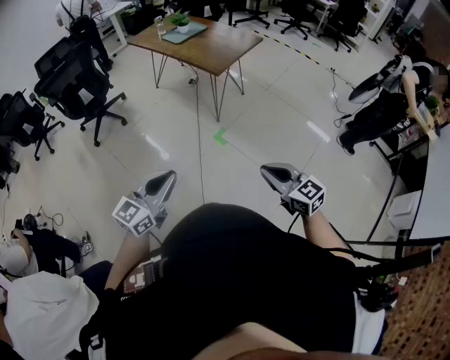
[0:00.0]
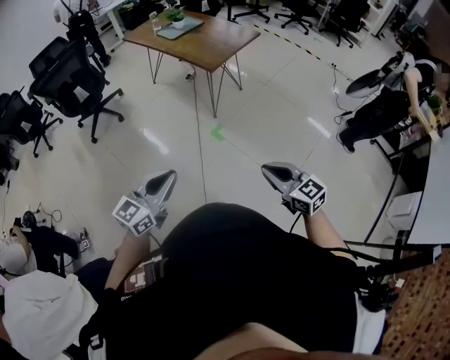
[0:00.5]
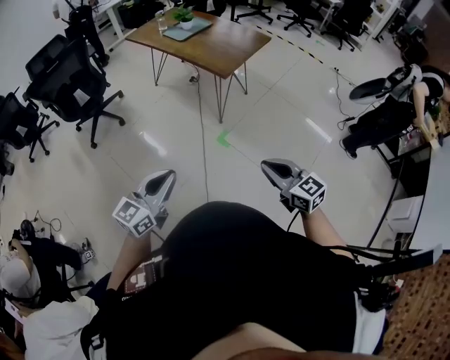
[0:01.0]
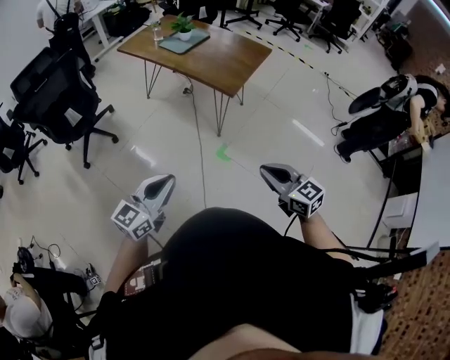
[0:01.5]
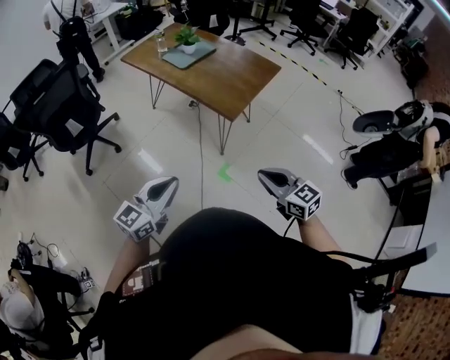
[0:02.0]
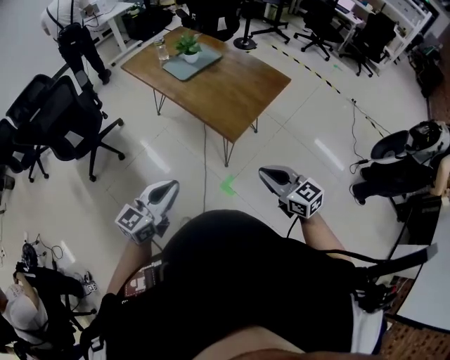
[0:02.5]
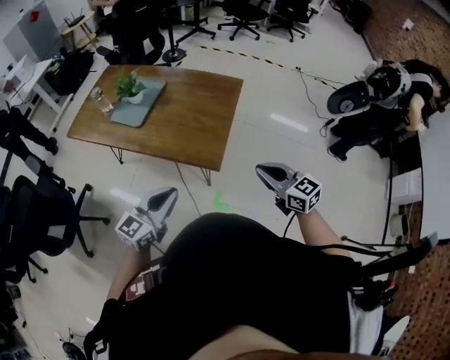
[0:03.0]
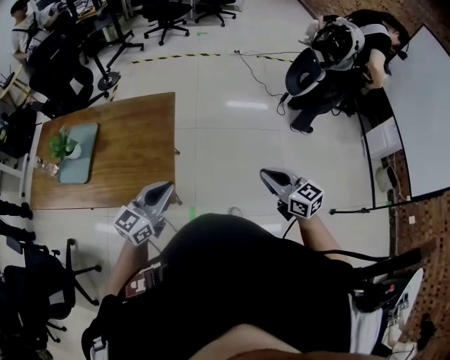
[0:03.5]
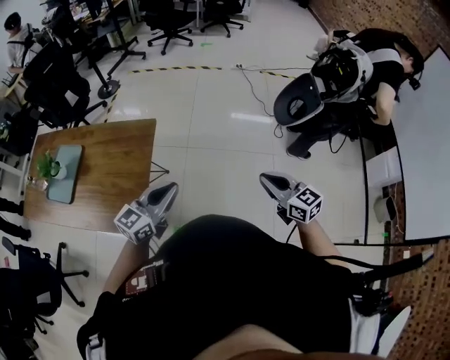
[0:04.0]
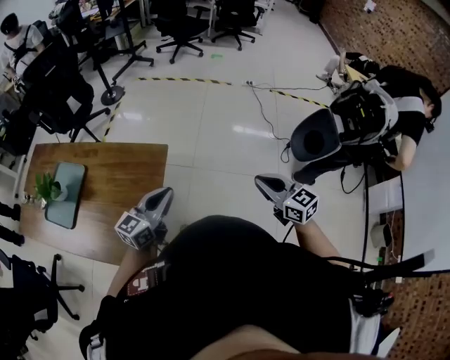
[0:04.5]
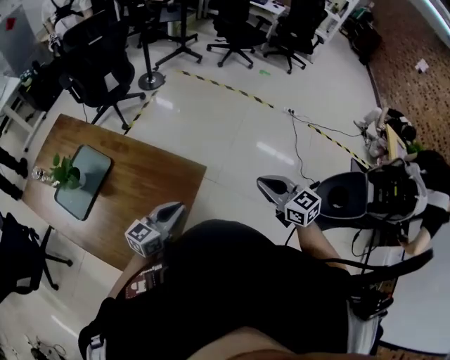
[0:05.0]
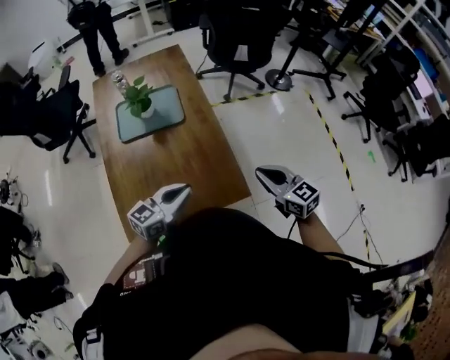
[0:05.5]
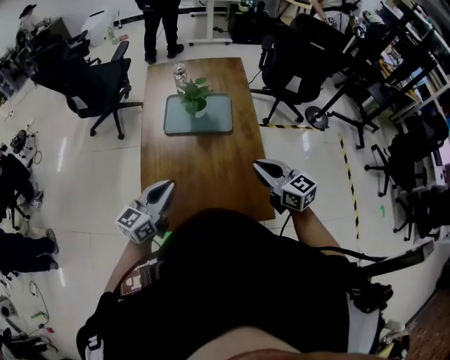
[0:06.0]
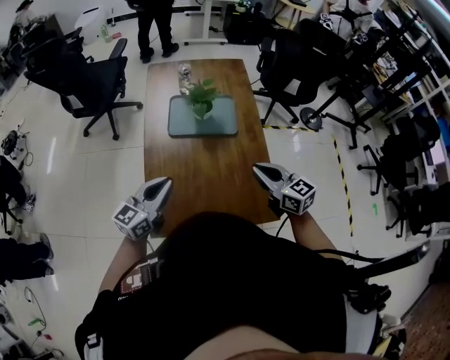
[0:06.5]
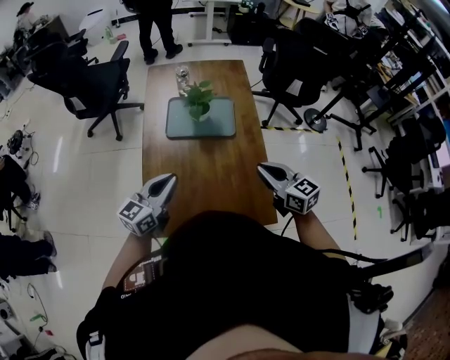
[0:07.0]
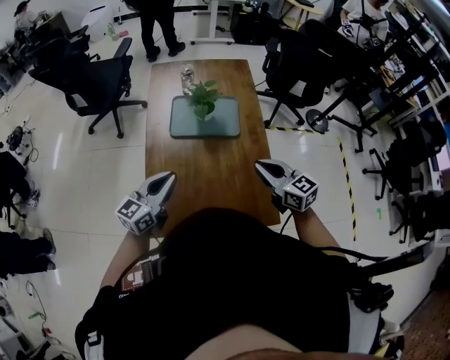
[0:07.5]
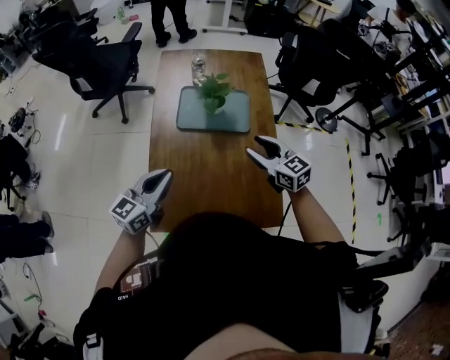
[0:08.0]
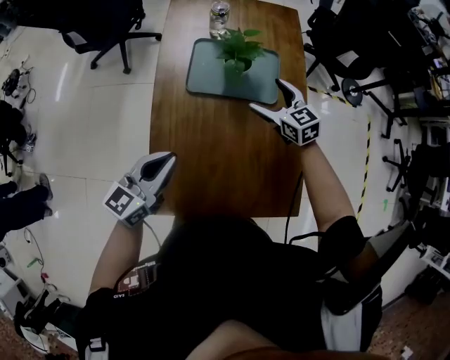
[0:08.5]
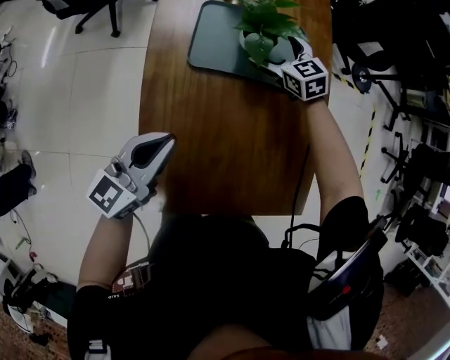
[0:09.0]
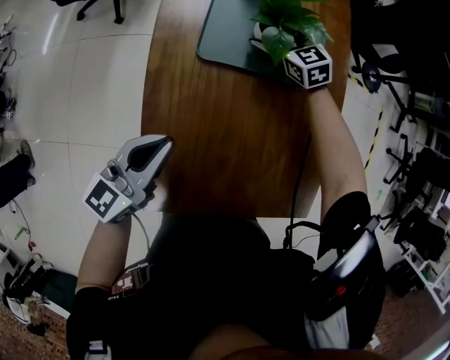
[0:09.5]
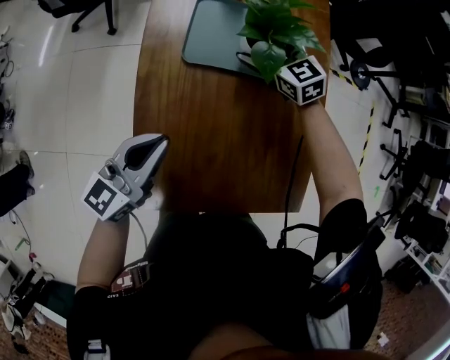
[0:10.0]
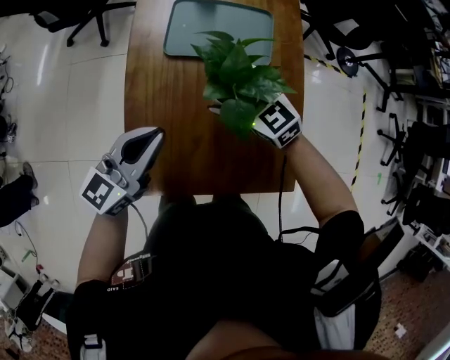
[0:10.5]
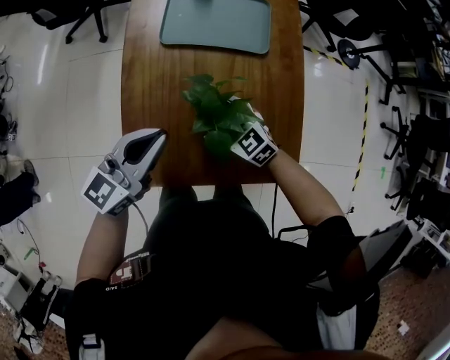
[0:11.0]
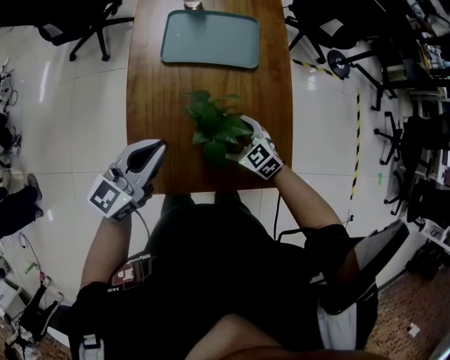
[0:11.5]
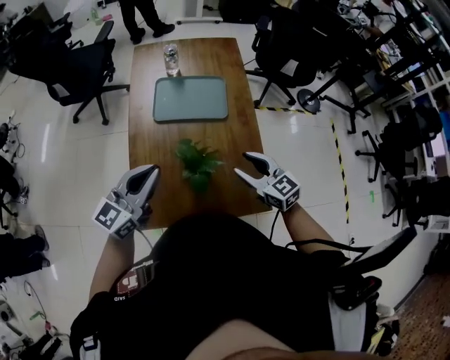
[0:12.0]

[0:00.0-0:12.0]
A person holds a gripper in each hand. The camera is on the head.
0:00.0 to 0:02.0: Both grippers travel together forward, approximately 35 cm.
0:02.0 to 0:04.0: The pair of grippers is taken about 60 cm. The left gripper rotates roughly 40 degrees. Meanwhile the right gripper rotates approximately 40 degrees.
0:04.0 to 0:06.0: The right gripper ends up approximately 70 cm from where it was, and rotates approximately 80 degrees. The left gripper ends up about 35 cm from where it was, and changes its angle by about 90 degrees.
0:06.0 to 0:08.0: The two grippers go roughly 10 cm forward and to the left.
0:08.0 to 0:10.0: The right gripper heads forward, downward and to the left, covering roughly 30 cm, and opens. The left gripper shifts roughly 15 cm downward and forward.
0:10.0 to 0:12.0: The left gripper goes some 20 cm upward and backward. The right gripper shifts some 35 cm backward and upward, and closes its fingers.

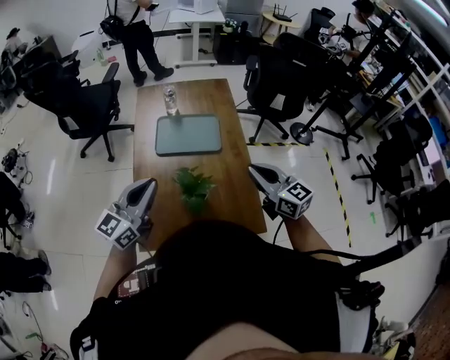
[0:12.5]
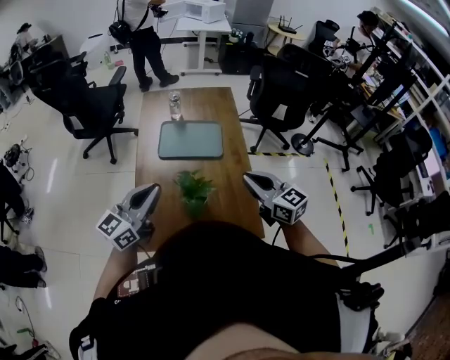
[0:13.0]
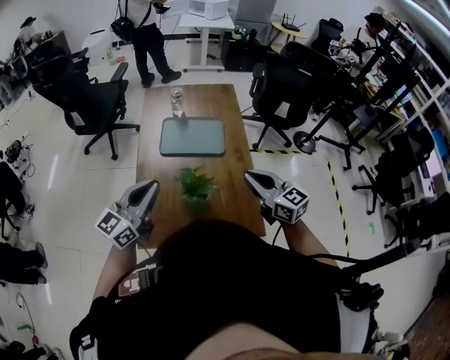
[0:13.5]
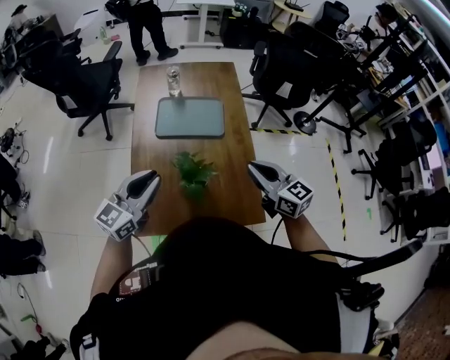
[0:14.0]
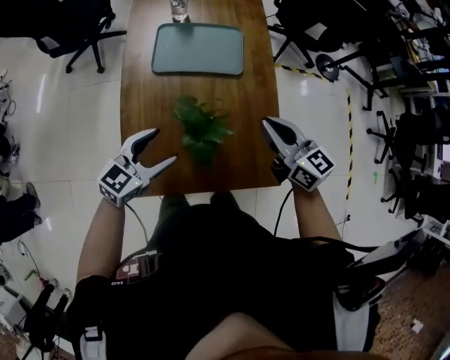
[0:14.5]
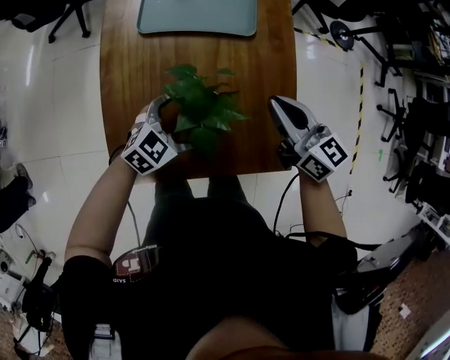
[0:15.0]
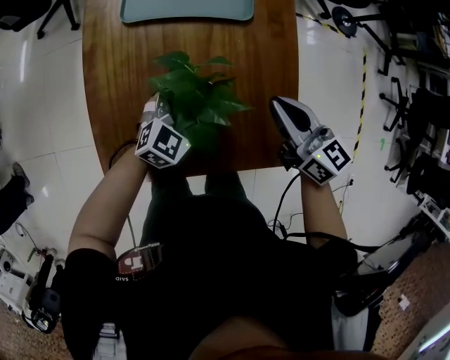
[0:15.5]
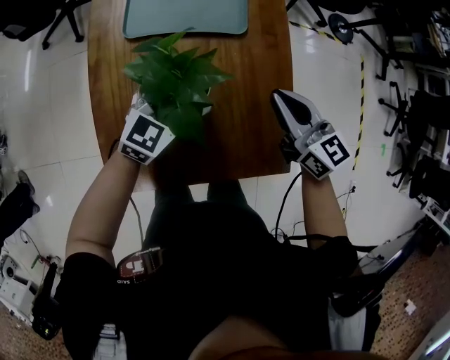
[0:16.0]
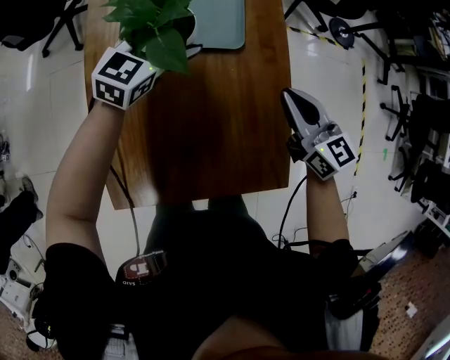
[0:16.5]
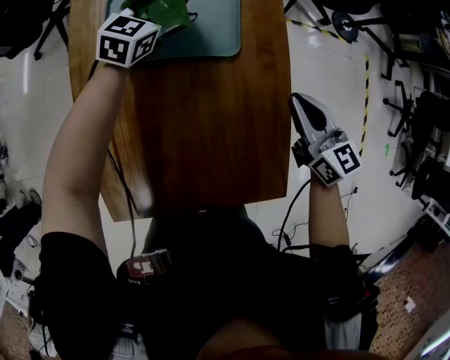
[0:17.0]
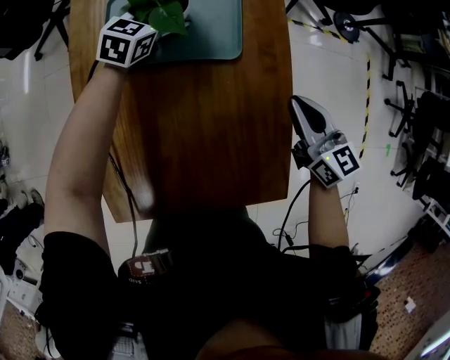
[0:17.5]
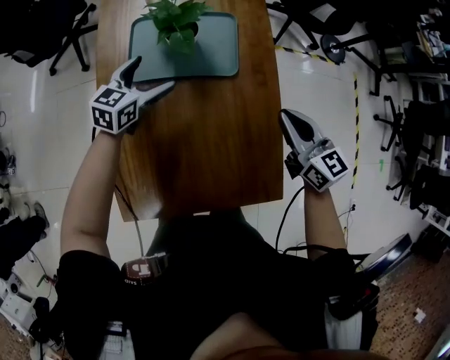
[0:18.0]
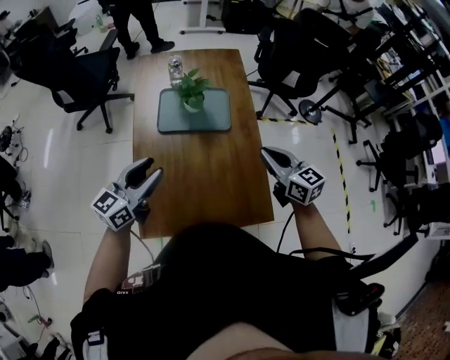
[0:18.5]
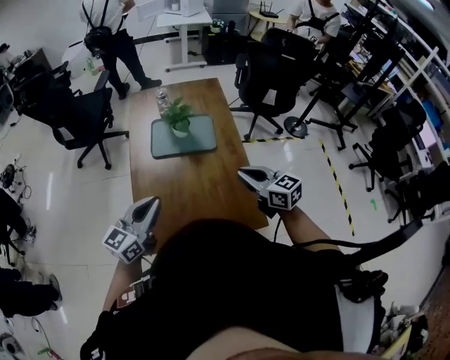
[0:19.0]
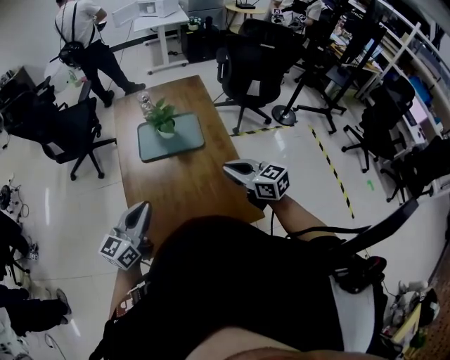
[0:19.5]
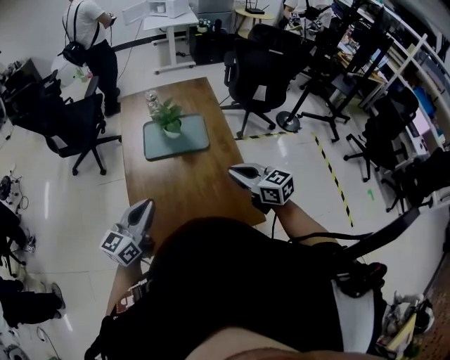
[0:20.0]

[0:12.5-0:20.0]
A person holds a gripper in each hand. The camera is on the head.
0:12.5 to 0:14.5: The left gripper heads downward, covering about 20 cm, changes its angle by approximately 30 degrees, and opens up. Meanwhile the right gripper is displaced downward by approximately 10 cm.
0:14.5 to 0:16.5: The right gripper moves downward and forward, about 15 cm. Meanwhile the left gripper is displaced forward by about 30 cm.
0:16.5 to 0:18.0: The left gripper shifts about 5 cm to the left, and travels forward and back again, approximately 10 cm each way.
0:18.0 to 0:20.0: The right gripper heads backward, upward and to the left, covering about 20 cm. The left gripper shifts approximately 40 cm backward and upward, changes its angle by roughly 30 degrees, and closes.

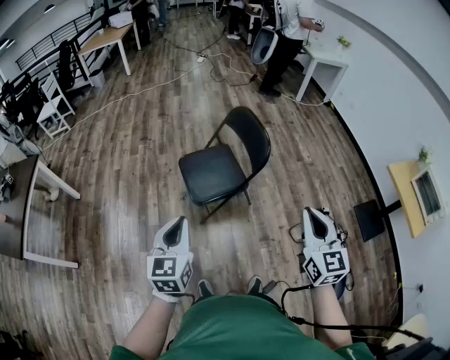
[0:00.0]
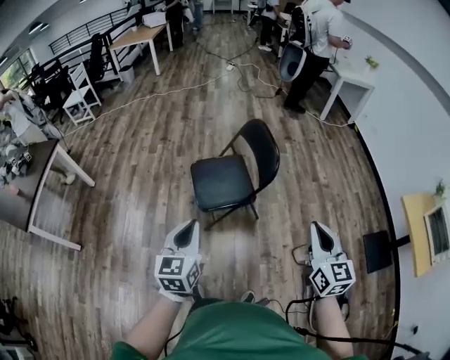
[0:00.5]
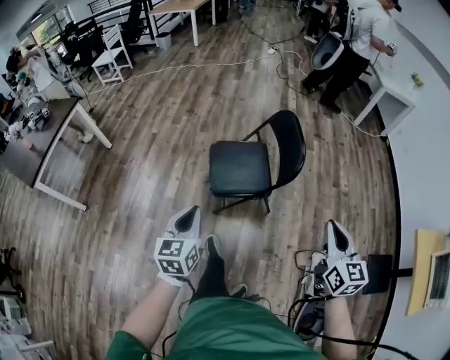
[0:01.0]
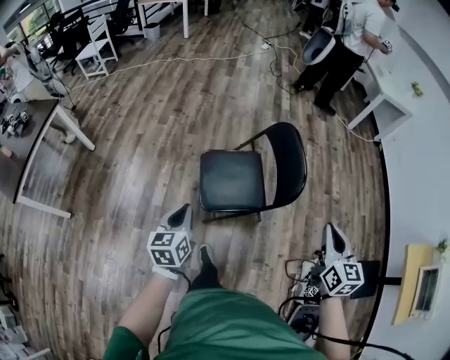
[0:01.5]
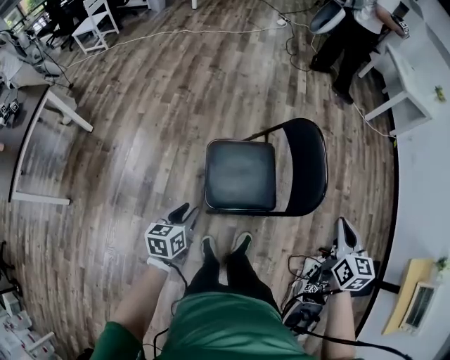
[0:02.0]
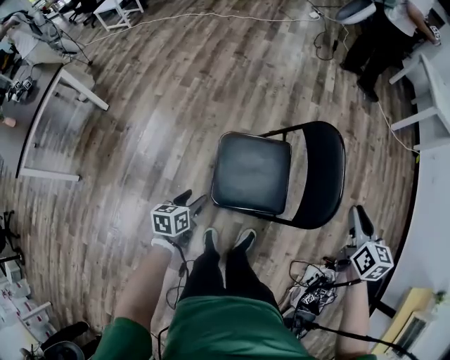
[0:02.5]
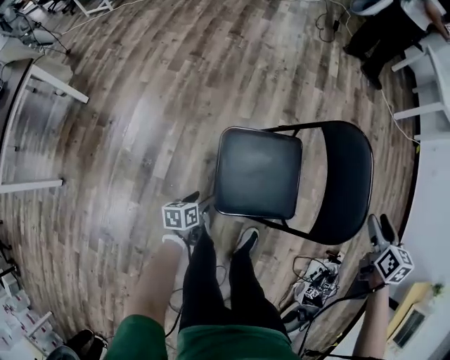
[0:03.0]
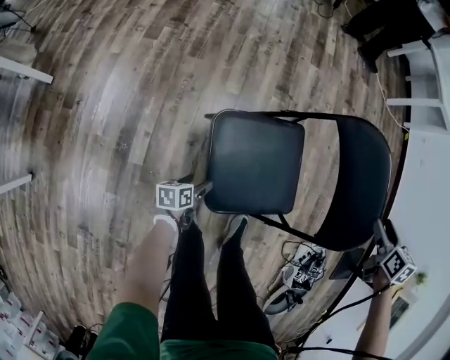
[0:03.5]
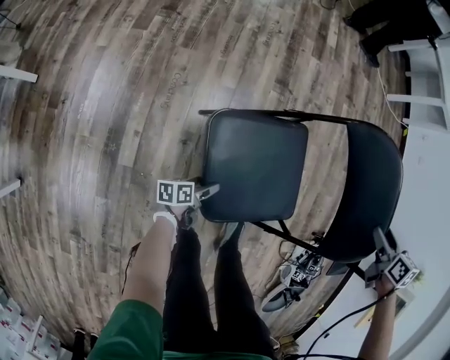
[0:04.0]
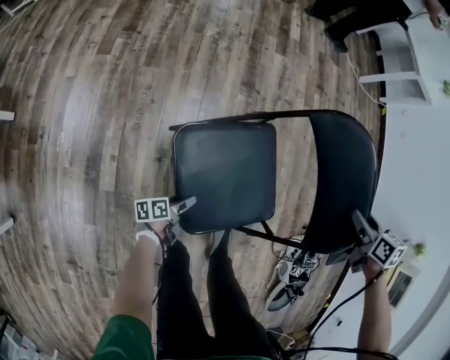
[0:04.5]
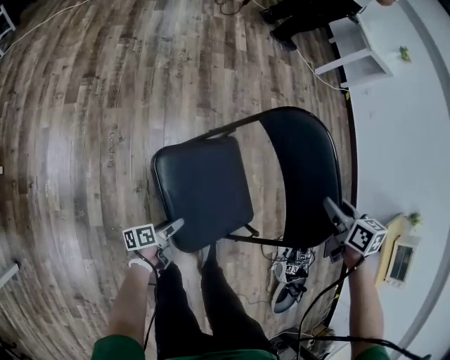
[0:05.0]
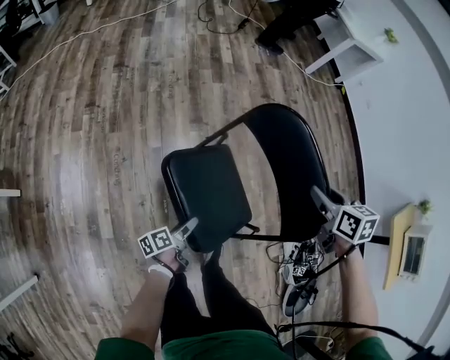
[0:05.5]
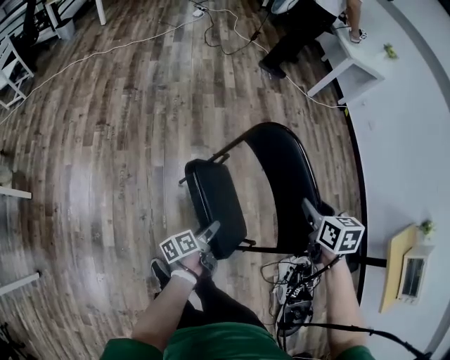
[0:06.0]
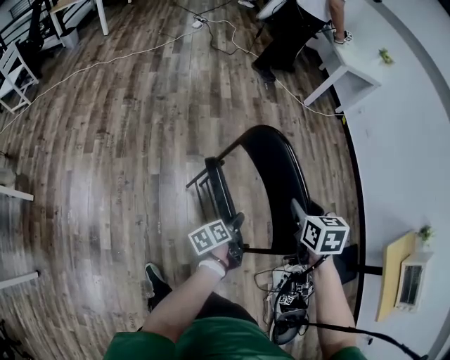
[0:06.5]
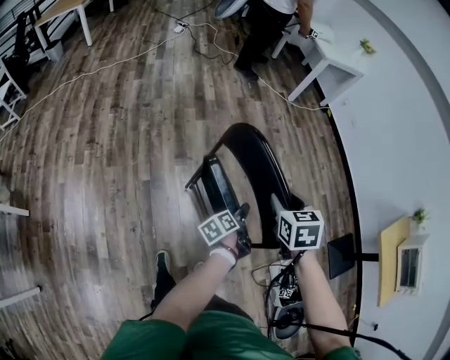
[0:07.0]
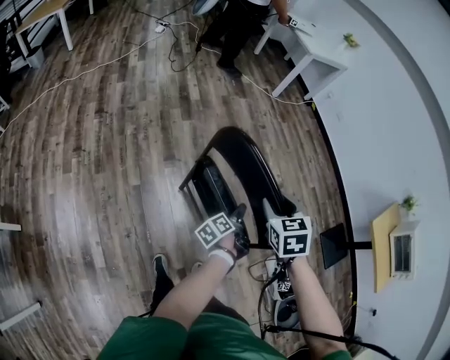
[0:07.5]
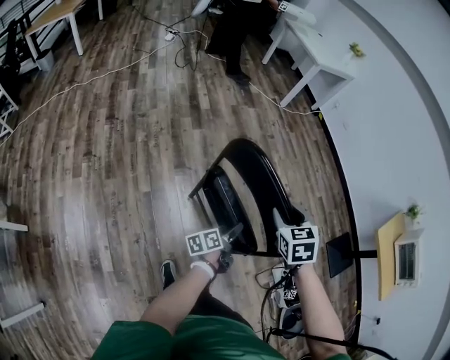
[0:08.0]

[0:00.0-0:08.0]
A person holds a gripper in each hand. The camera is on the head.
0:00.0 to 0:02.0: The left gripper goes some 35 cm forward and downward, rotates some 30 degrees, and opens up; the right gripper moves forward, roughly 40 cm, and changes its angle by approximately 20 degrees.
0:02.0 to 0:04.0: The right gripper goes approximately 30 cm downward and forward, swivels about 30 degrees, and opens up; the left gripper heads downward, covering approximately 50 cm, turns by about 50 degrees, and opens.
0:04.0 to 0:06.0: The left gripper goes approximately 40 cm upward, to the right and forward; the right gripper goes roughly 20 cm upward, to the right and forward, and closes.
0:06.0 to 0:08.0: The left gripper shifts about 15 cm to the right, forward and upward, and swivels approximately 20 degrees. Meanwhile the right gripper moves approximately 5 cm.
